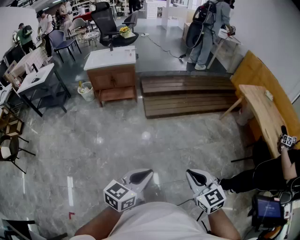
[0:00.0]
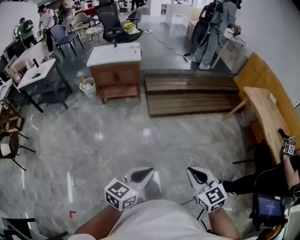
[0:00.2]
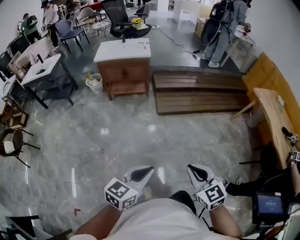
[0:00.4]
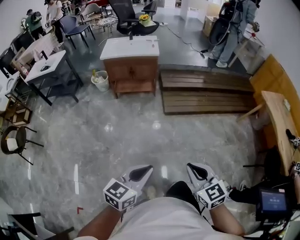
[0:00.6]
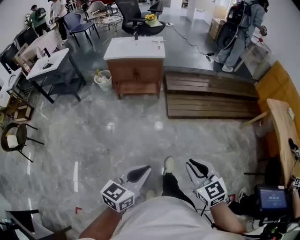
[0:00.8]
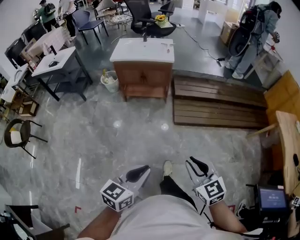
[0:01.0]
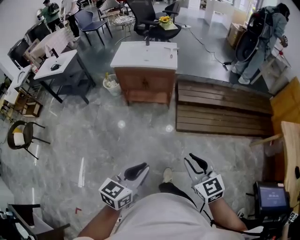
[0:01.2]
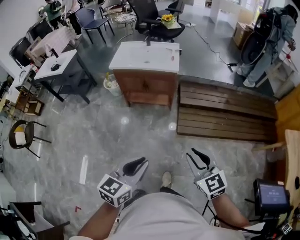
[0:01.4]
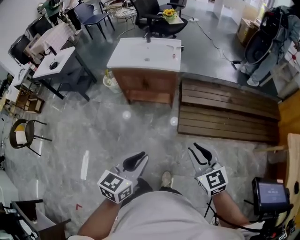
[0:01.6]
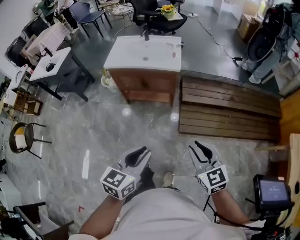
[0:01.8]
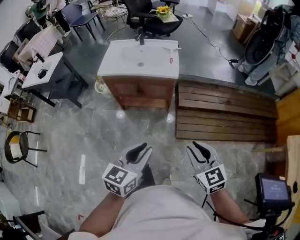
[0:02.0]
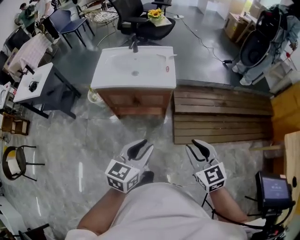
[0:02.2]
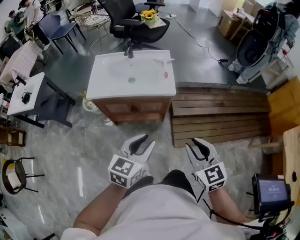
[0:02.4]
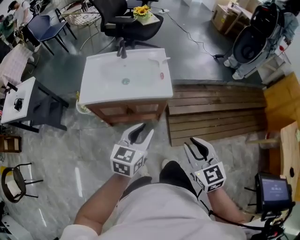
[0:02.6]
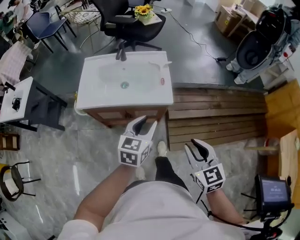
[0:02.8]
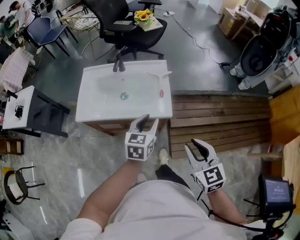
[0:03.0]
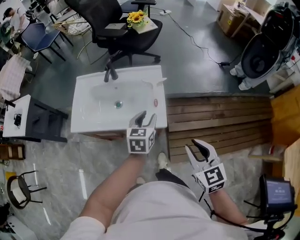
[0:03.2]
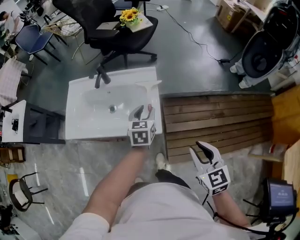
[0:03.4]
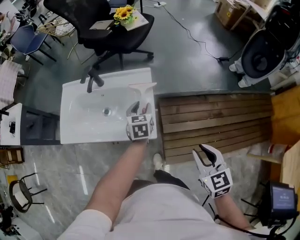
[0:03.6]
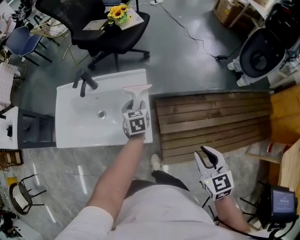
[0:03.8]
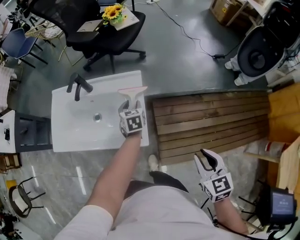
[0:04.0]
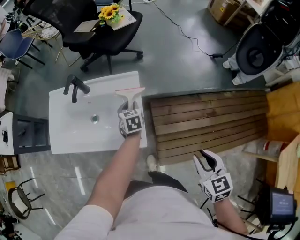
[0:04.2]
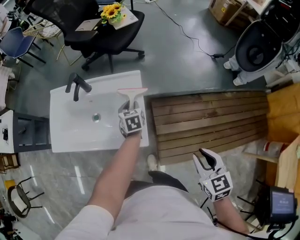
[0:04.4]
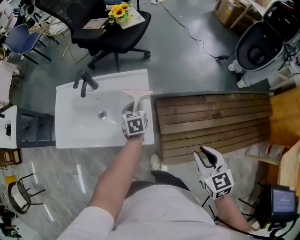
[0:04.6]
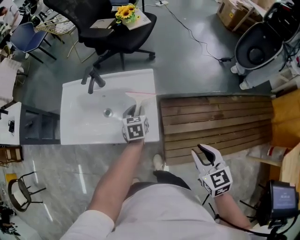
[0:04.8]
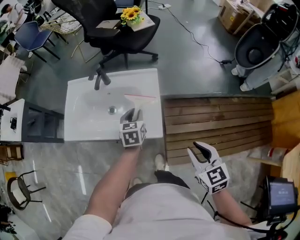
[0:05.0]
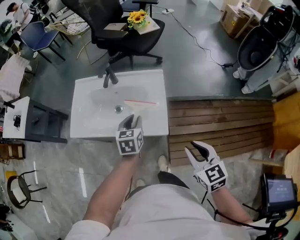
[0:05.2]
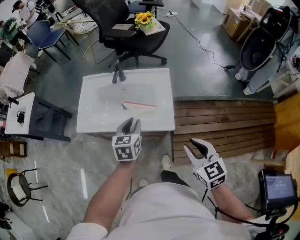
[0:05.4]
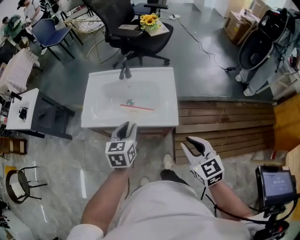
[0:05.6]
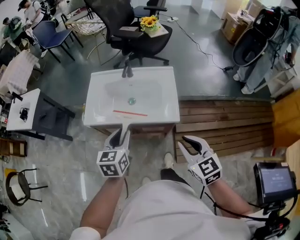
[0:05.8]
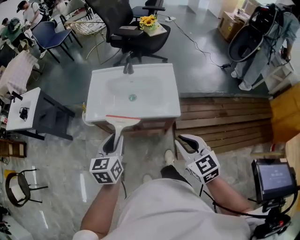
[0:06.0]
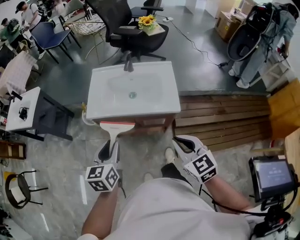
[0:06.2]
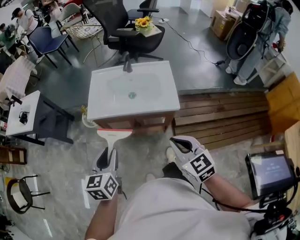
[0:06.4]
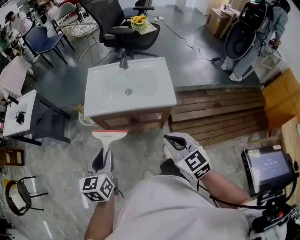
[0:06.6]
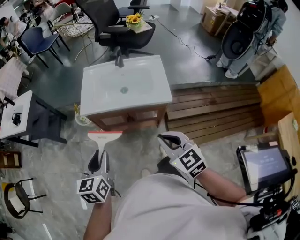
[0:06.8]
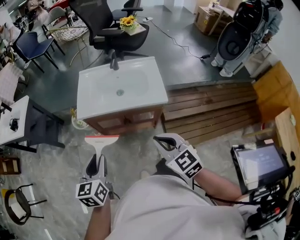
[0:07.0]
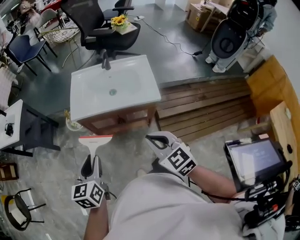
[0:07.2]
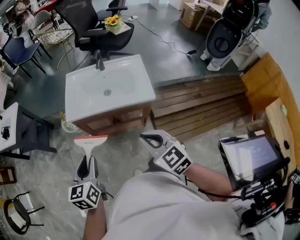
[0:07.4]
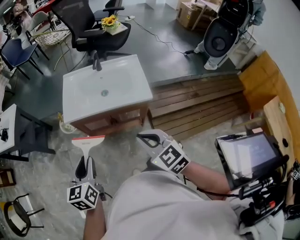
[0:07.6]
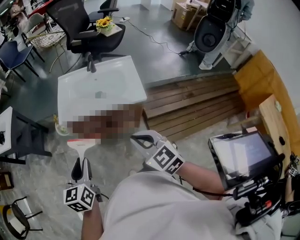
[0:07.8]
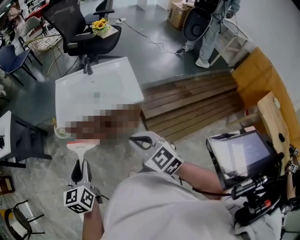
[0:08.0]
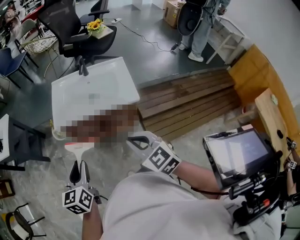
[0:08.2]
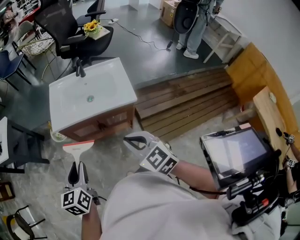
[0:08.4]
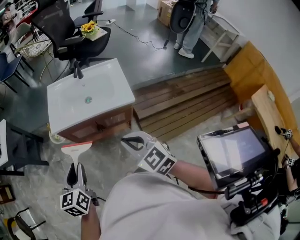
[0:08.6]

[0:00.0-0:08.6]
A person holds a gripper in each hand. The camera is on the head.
0:00.0 to 0:01.4: The pair of grippers is taken forward, approximately 50 cm. The left gripper changes its angle by some 20 degrees.
0:01.4 to 0:02.8: The two grippers travel together, forward, approximately 50 cm. The left gripper opens up.
0:02.8 to 0:04.4: The right gripper travels to the right and forward by about 30 cm; the left gripper moves forward and downward, roughly 40 cm, and swivels approximately 30 degrees.
0:04.4 to 0:05.8: The left gripper goes about 50 cm backward, to the left and upward. The right gripper heads to the left, covering approximately 25 cm.
0:05.8 to 0:07.2: Both grippers move to the left and backward, roughly 20 cm.
0:07.2 to 0:08.6: There are only small adjustments of the grippers.

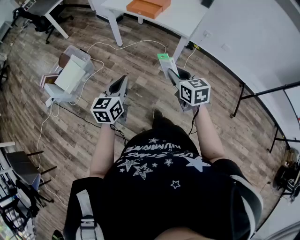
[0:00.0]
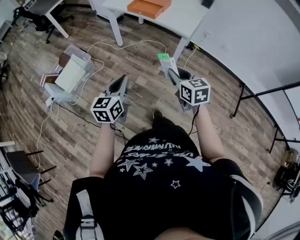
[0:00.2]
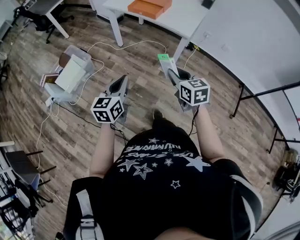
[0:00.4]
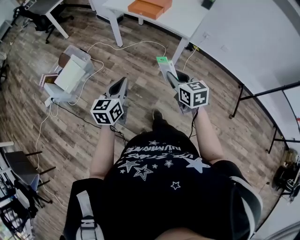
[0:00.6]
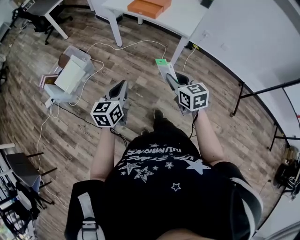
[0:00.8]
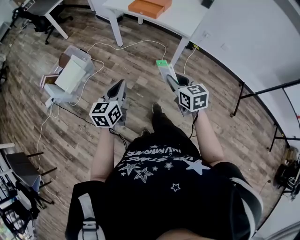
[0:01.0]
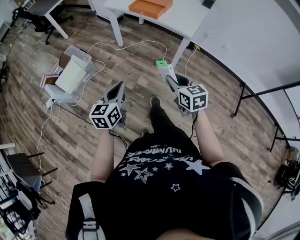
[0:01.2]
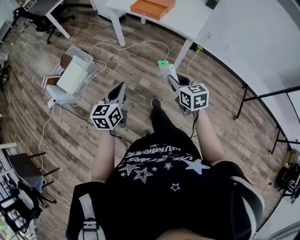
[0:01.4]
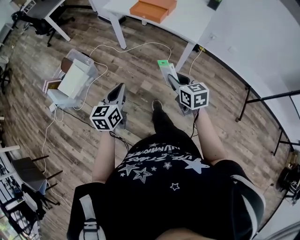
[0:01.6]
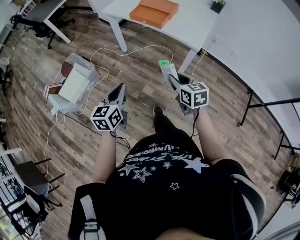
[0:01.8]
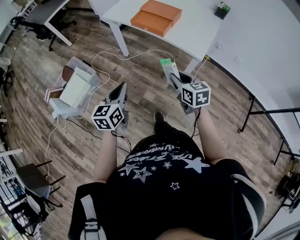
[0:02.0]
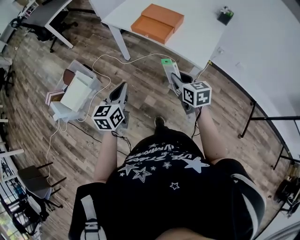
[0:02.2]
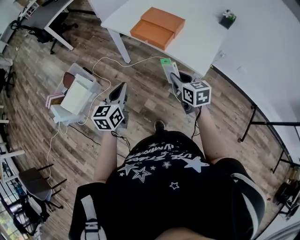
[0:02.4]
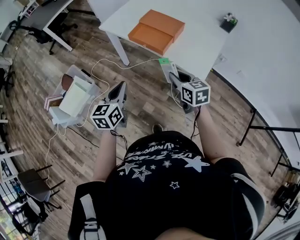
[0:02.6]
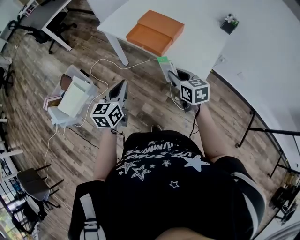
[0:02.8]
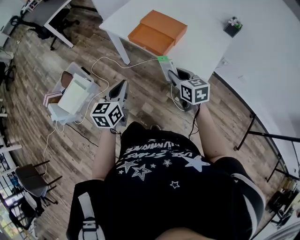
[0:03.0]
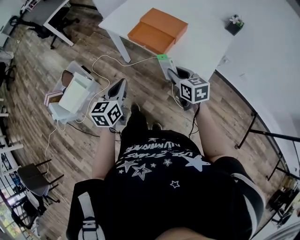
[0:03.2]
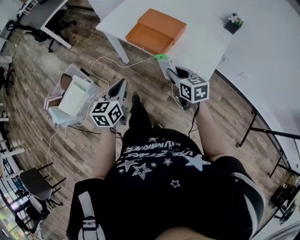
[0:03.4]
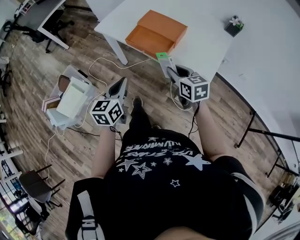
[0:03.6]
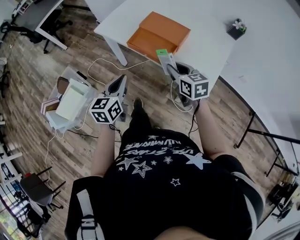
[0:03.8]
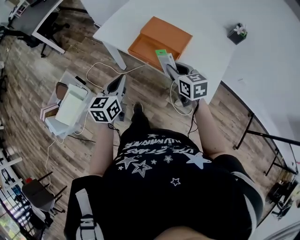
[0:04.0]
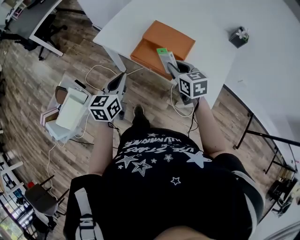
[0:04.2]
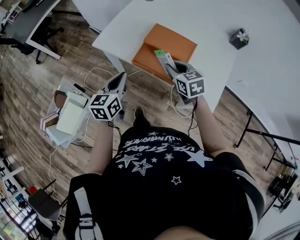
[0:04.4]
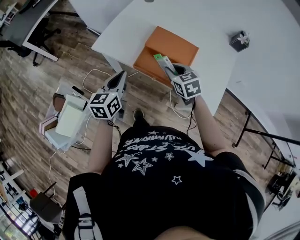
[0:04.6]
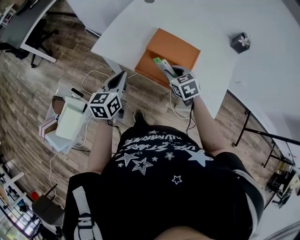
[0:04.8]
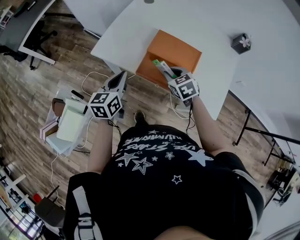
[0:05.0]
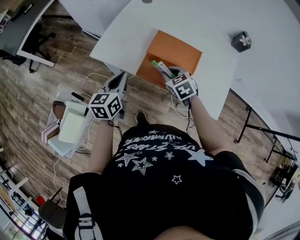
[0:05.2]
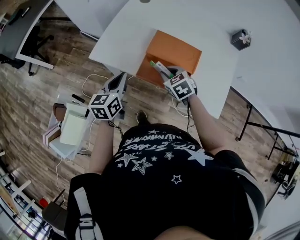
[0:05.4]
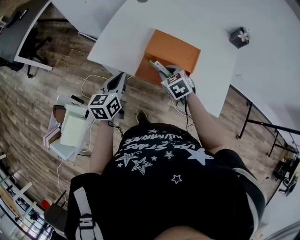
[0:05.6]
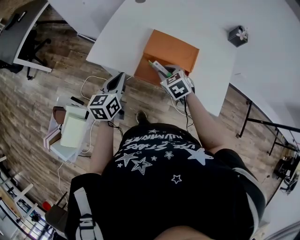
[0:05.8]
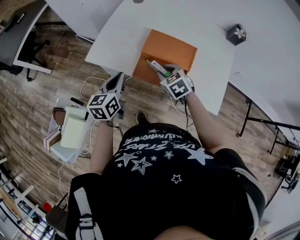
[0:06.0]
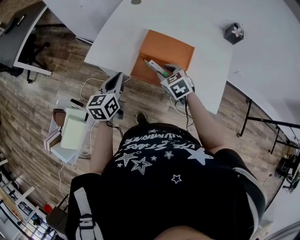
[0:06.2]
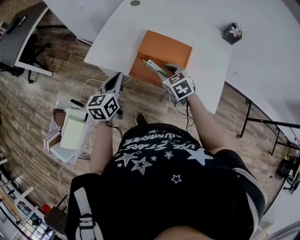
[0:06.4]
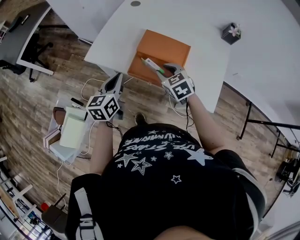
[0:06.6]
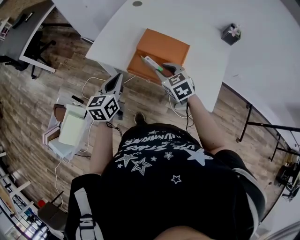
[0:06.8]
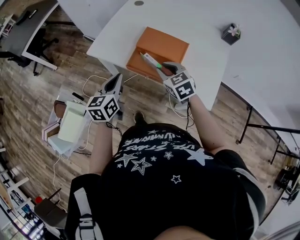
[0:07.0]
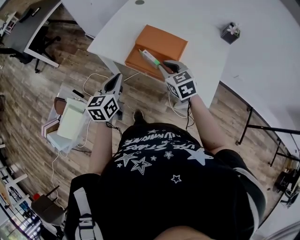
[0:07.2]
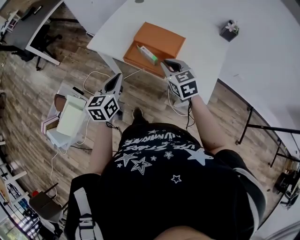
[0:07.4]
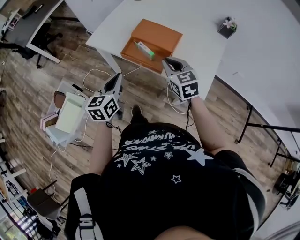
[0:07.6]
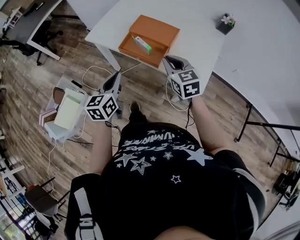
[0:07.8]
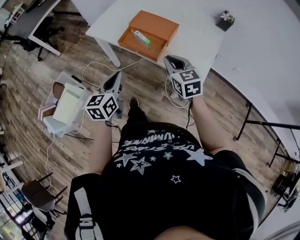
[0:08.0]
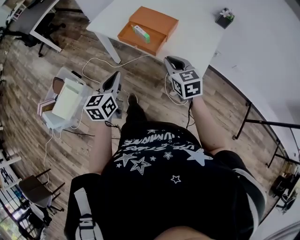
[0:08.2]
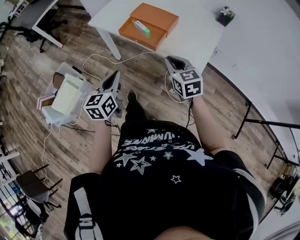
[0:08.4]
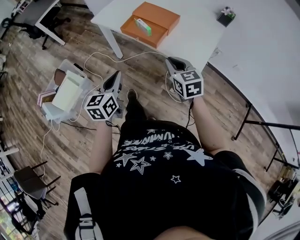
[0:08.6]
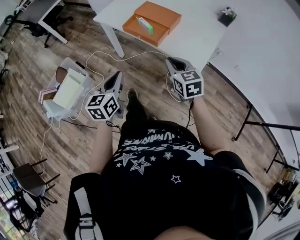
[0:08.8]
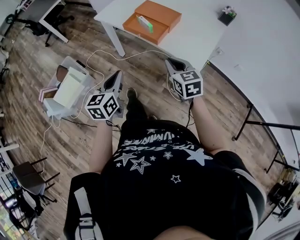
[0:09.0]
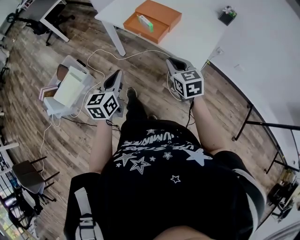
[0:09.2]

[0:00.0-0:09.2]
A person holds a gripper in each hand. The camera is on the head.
0:00.0 to 0:01.6: Both grippers move forward, roughly 10 cm.
0:01.6 to 0:03.0: Both grippers travel together forward, some 35 cm.
0:03.0 to 0:04.6: Both grippers move forward, roughly 30 cm.
0:04.6 to 0:06.2: The left gripper is displaced forward by about 5 cm.
0:06.2 to 0:07.6: The left gripper shifts some 20 cm backward and to the right; the right gripper moves backward, upward and to the right, about 20 cm, and rotates roughly 20 degrees.
0:07.6 to 0:09.2: The two grippers go approximately 20 cm backward.

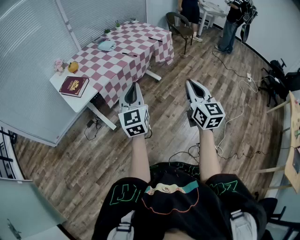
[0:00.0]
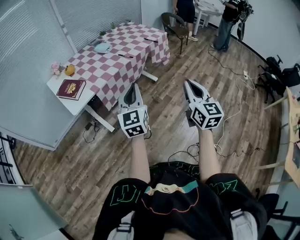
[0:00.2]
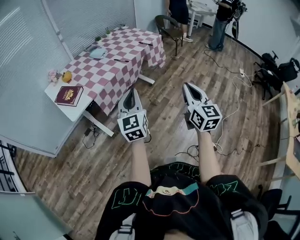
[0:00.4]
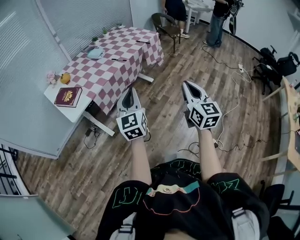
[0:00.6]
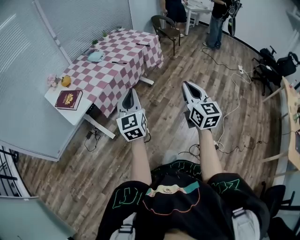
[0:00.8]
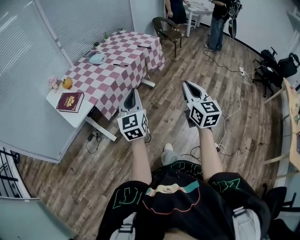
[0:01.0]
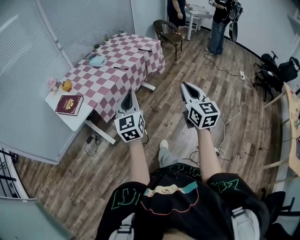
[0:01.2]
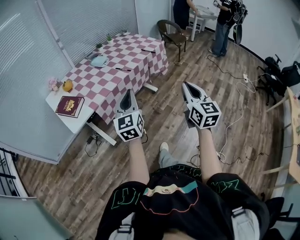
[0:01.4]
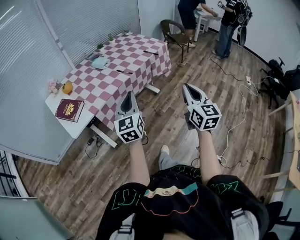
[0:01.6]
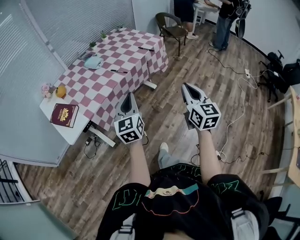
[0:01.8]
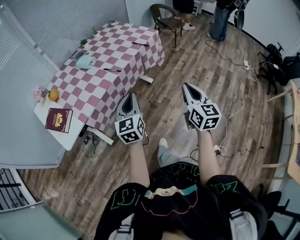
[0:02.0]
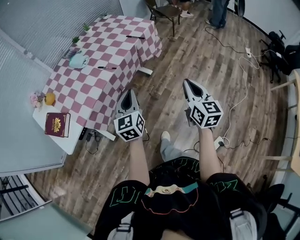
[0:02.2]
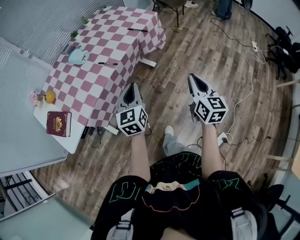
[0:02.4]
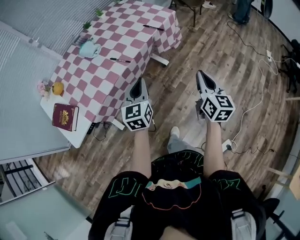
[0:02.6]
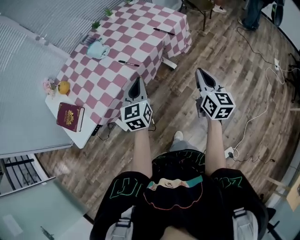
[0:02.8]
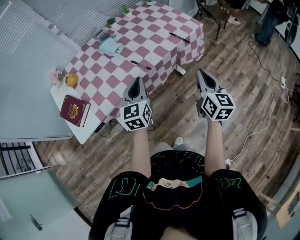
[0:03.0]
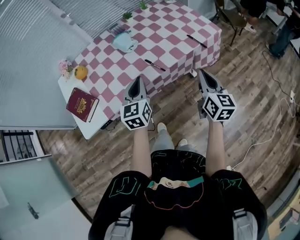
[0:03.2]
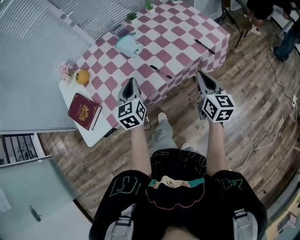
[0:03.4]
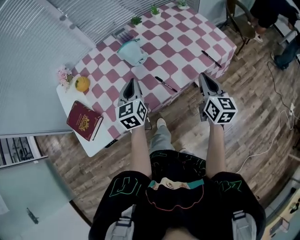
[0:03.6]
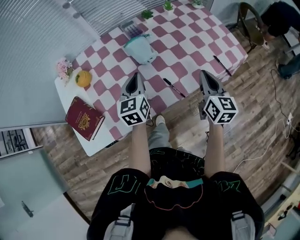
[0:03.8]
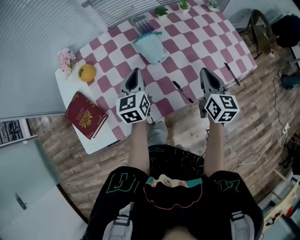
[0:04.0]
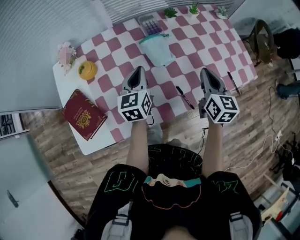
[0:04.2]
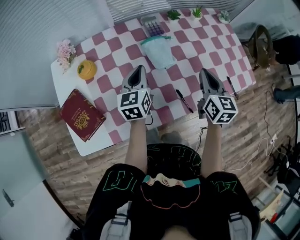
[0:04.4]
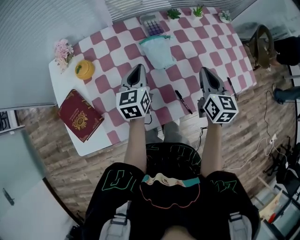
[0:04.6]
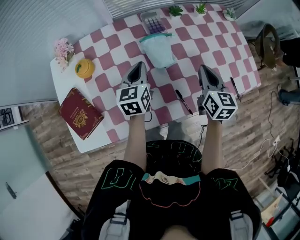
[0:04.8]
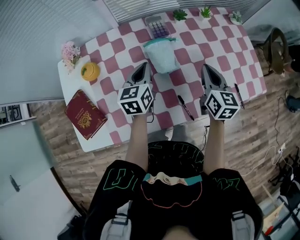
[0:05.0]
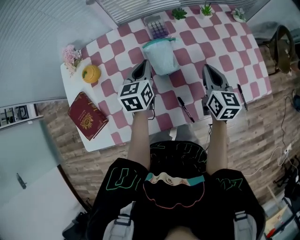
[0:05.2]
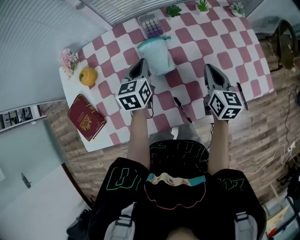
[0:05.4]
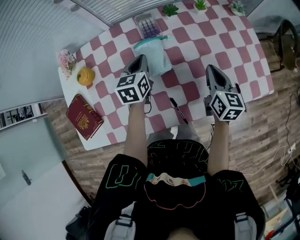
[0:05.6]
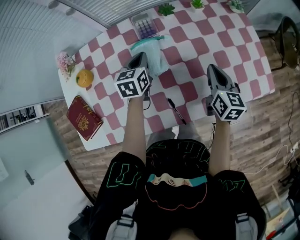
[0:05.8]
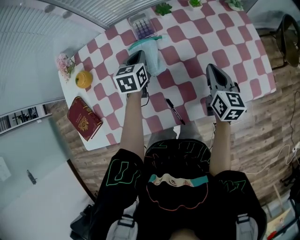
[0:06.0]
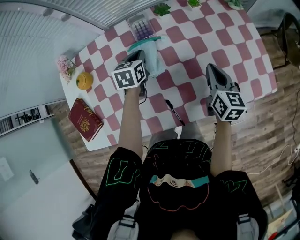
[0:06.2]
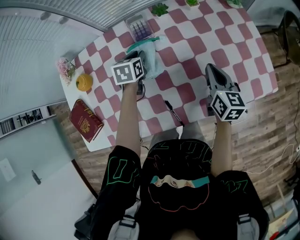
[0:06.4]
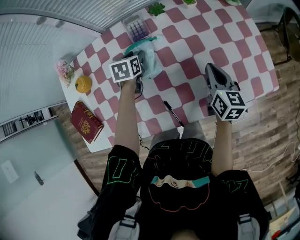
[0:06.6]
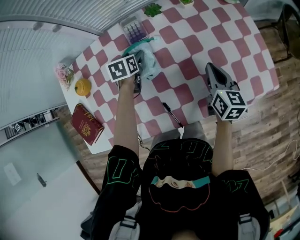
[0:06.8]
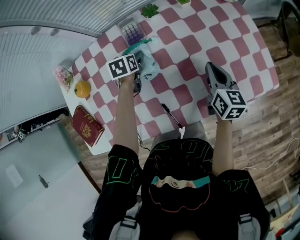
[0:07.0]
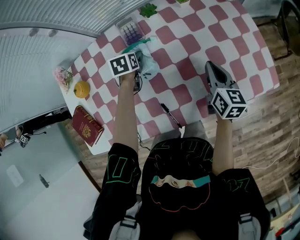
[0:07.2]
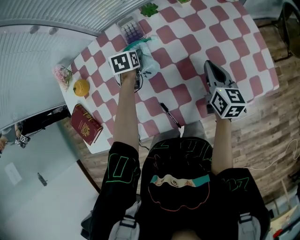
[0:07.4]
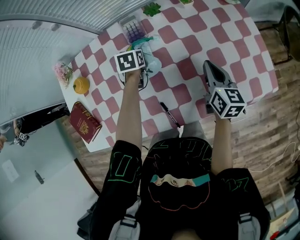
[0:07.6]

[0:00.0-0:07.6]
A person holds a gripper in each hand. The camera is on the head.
0:00.0 to 0:01.6: Both grippers move forward, about 10 cm.
0:01.6 to 0:03.0: The two grippers go approximately 25 cm forward.
0:03.0 to 0:04.6: Both grippers travel together forward and to the left, about 40 cm. The right gripper swivels about 20 degrees, while the left gripper swivels approximately 20 degrees.
0:04.6 to 0:06.0: The left gripper is displaced forward, to the right and downward by some 15 cm, and turns by roughly 20 degrees; the right gripper is displaced to the right, downward and forward by about 15 cm.
0:06.0 to 0:07.6: The left gripper goes approximately 10 cm downward, swivels approximately 20 degrees, and opens and closes again.
